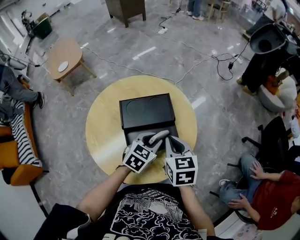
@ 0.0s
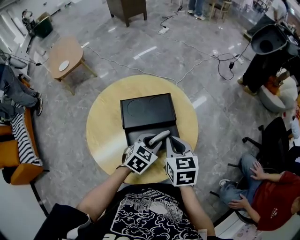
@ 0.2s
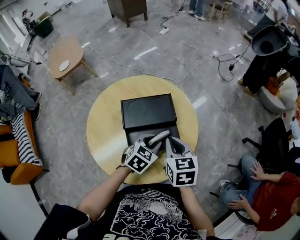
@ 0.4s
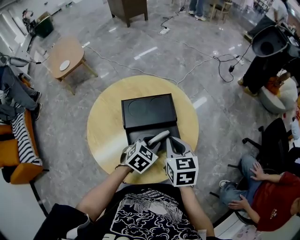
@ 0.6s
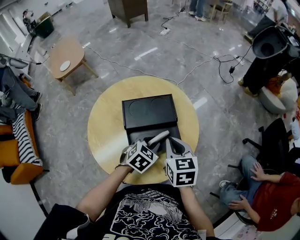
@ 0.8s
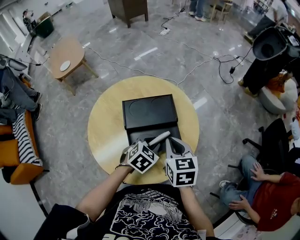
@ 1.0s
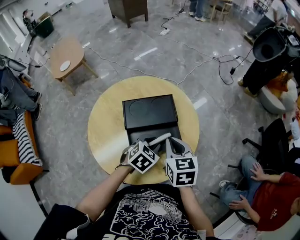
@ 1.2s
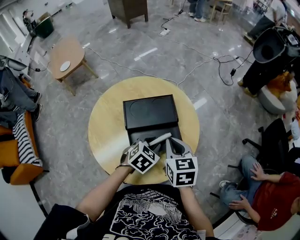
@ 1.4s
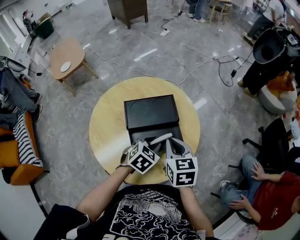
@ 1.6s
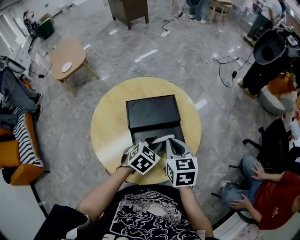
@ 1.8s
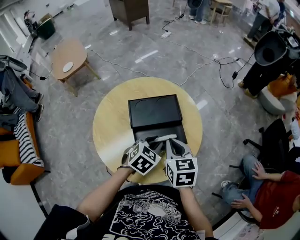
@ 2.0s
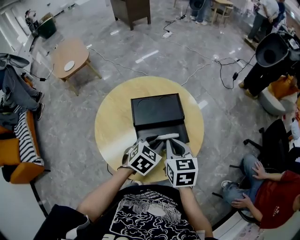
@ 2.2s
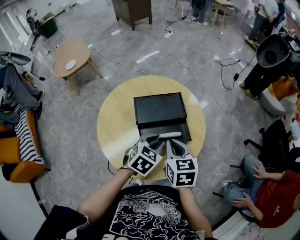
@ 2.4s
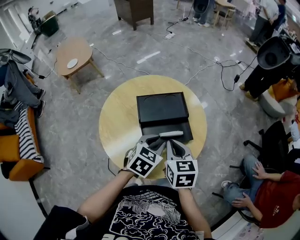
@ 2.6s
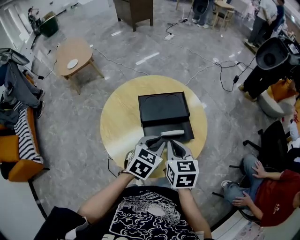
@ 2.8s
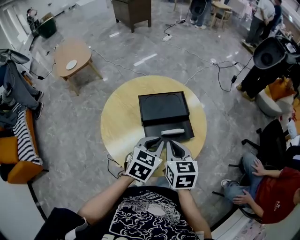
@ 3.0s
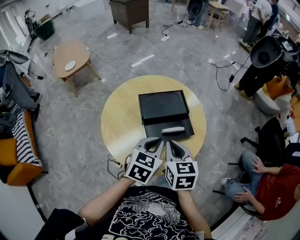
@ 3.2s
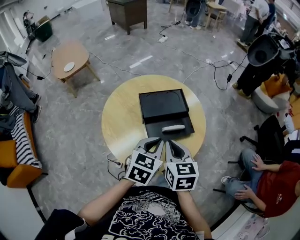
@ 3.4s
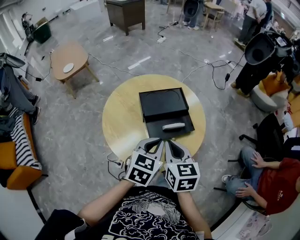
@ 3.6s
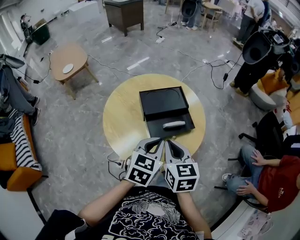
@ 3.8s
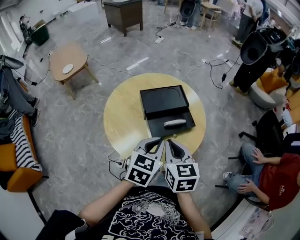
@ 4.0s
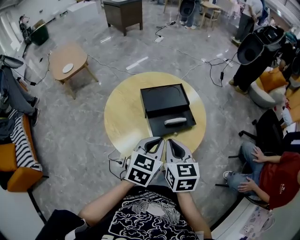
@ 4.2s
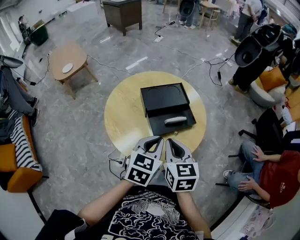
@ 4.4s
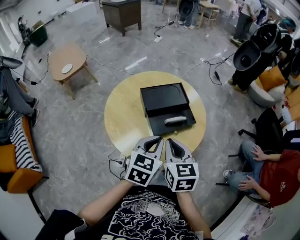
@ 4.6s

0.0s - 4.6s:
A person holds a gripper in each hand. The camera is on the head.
0.0s - 1.6s: The grippers stay close to where they were, moving slightly.
1.6s - 3.0s: The right gripper moves backward and to the left, approximately 10 cm. The left gripper goes roughly 15 cm upward, backward and to the left.
3.0s - 4.6s: The grippers both shift backward by approximately 10 cm.

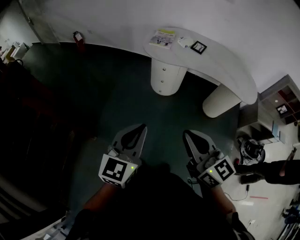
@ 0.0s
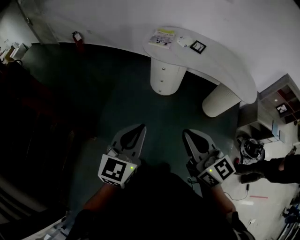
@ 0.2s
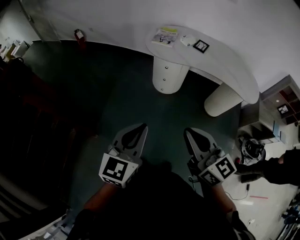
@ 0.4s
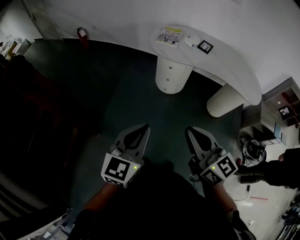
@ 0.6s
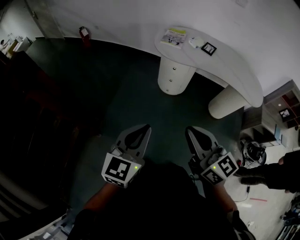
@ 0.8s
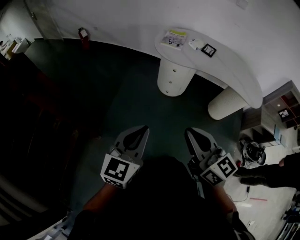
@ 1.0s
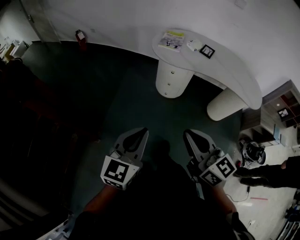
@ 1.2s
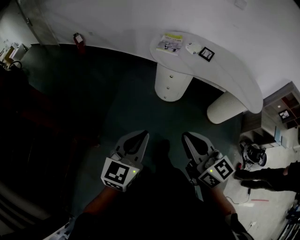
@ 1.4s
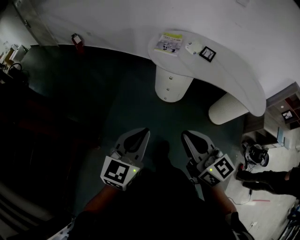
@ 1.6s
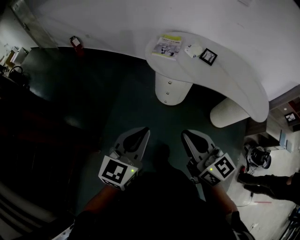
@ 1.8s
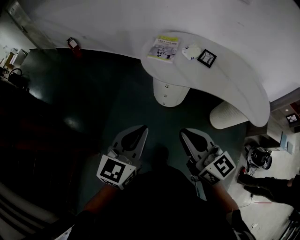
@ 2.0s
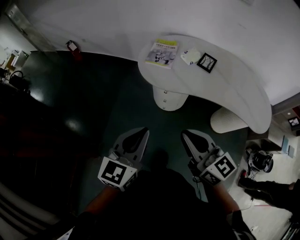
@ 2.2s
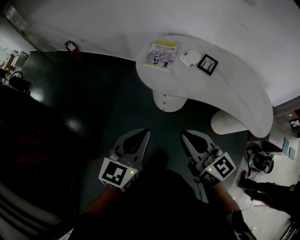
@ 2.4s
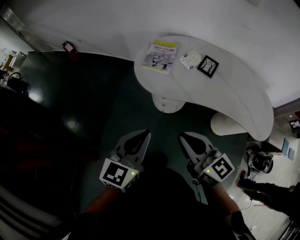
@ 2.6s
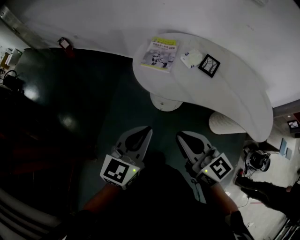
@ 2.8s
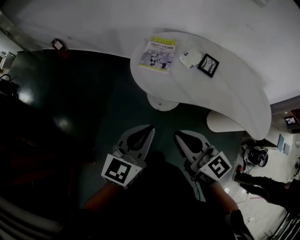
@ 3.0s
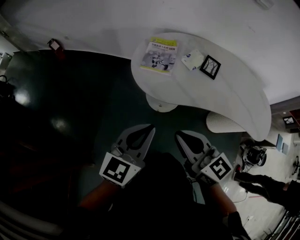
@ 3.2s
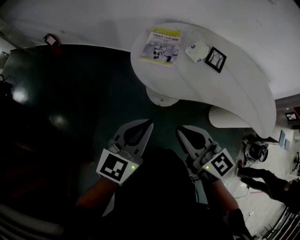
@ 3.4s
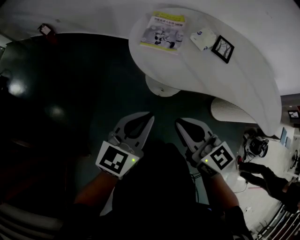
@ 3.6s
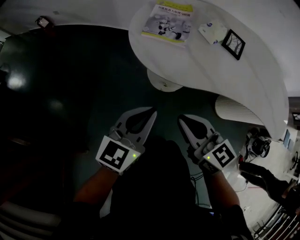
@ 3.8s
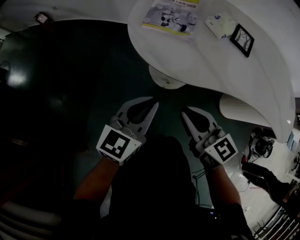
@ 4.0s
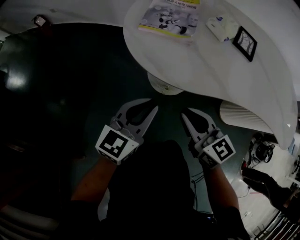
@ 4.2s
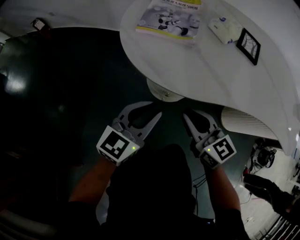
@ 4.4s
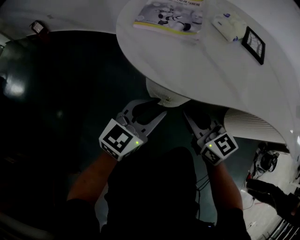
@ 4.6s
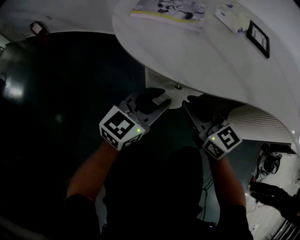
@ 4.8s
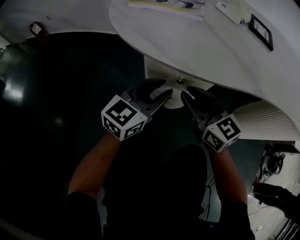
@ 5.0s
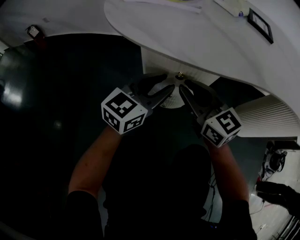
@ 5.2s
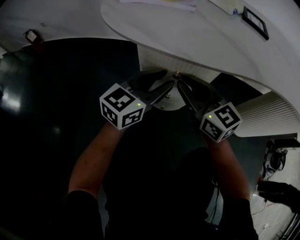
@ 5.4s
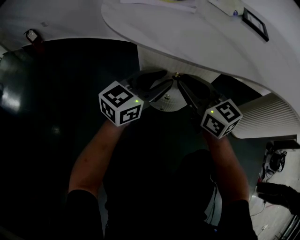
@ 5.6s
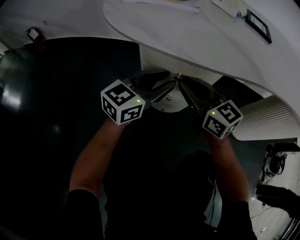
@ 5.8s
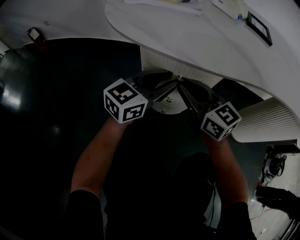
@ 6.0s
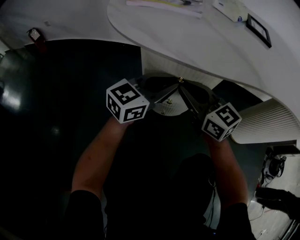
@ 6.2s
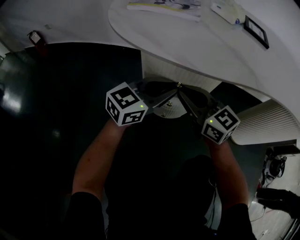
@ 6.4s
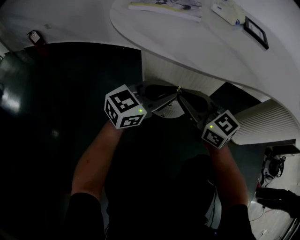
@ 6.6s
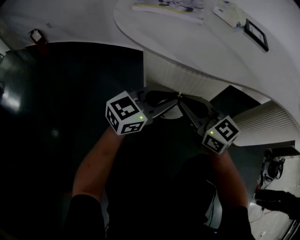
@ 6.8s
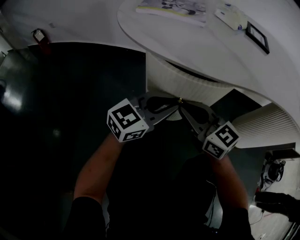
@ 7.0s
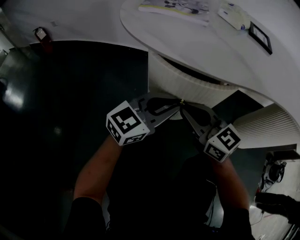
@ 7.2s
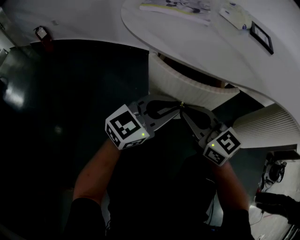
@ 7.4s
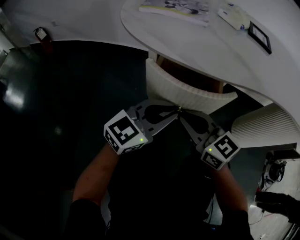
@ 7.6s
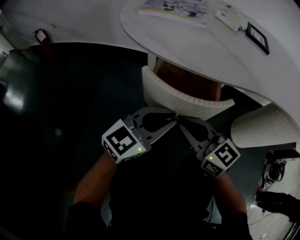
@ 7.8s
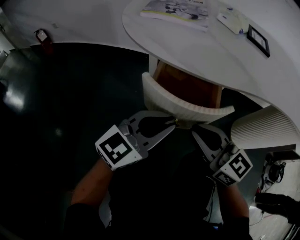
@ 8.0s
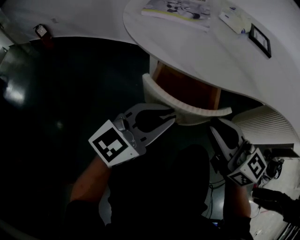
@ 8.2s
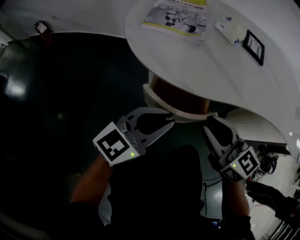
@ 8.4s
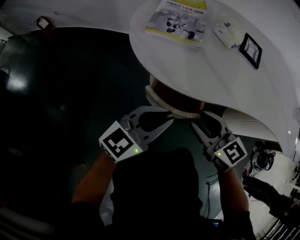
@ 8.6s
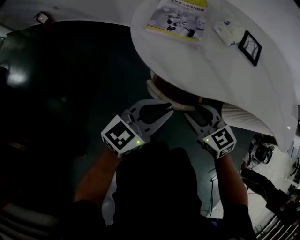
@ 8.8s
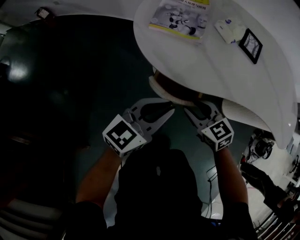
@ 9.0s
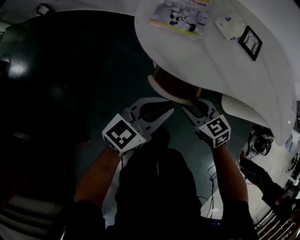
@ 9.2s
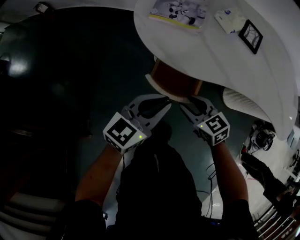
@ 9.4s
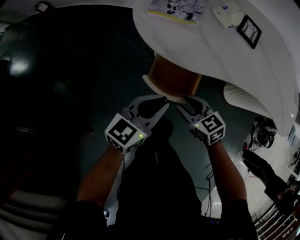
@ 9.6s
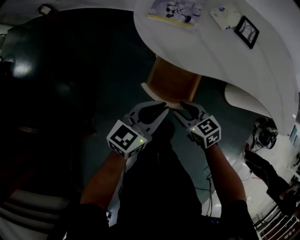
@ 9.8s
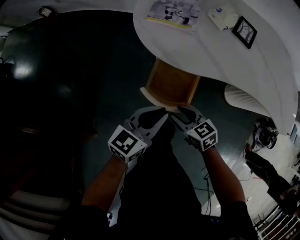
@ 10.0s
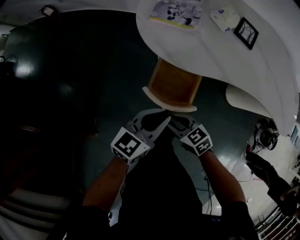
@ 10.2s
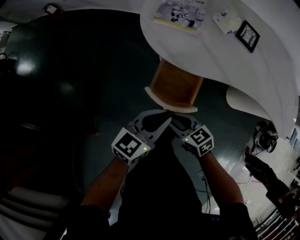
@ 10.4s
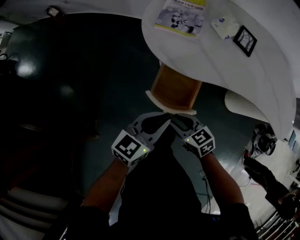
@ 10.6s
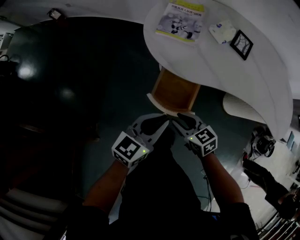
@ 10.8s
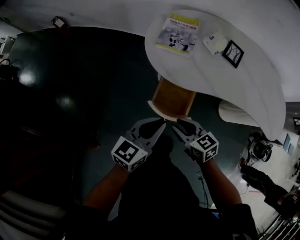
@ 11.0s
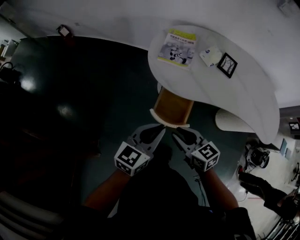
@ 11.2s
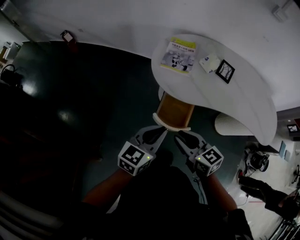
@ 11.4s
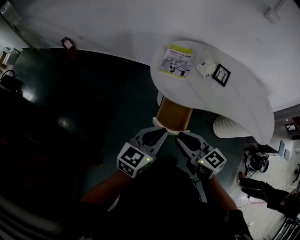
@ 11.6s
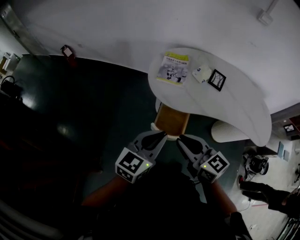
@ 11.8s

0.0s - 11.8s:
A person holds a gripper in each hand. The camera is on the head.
0.0s - 1.4s: The two grippers go some 10 cm forward and to the left.
1.4s - 3.0s: Both grippers move forward, approximately 35 cm.
3.0s - 4.4s: The grippers both shift downward and forward by some 35 cm.
4.4s - 6.0s: Both grippers travel together downward and forward, approximately 15 cm.
6.0s - 7.4s: The grippers both shift backward by about 10 cm.
7.4s - 8.8s: The left gripper goes approximately 20 cm upward; the right gripper heads upward, covering about 10 cm, changes its angle by about 20 degrees, and opens.
8.8s - 10.4s: The right gripper goes approximately 15 cm backward and to the left, and turns by about 20 degrees, while the left gripper goes approximately 10 cm backward.
10.4s - 11.8s: The left gripper shifts roughly 20 cm upward, while the right gripper is displaced upward by approximately 35 cm, and rotates roughly 30 degrees.

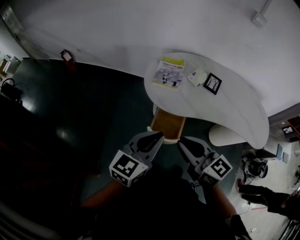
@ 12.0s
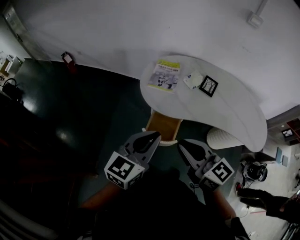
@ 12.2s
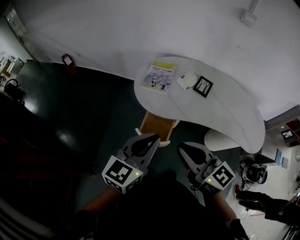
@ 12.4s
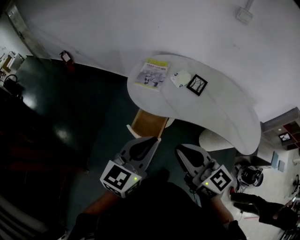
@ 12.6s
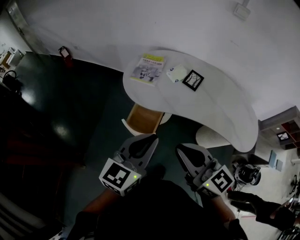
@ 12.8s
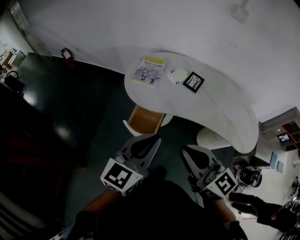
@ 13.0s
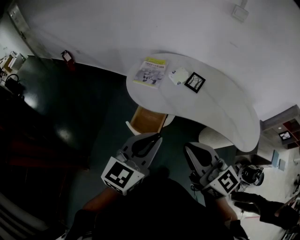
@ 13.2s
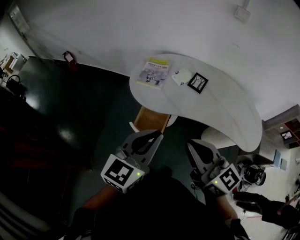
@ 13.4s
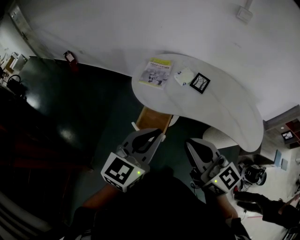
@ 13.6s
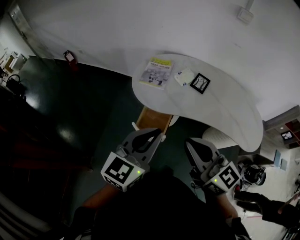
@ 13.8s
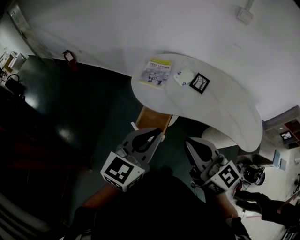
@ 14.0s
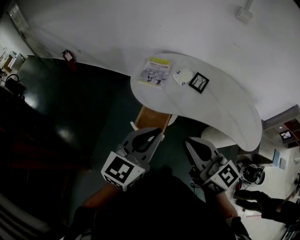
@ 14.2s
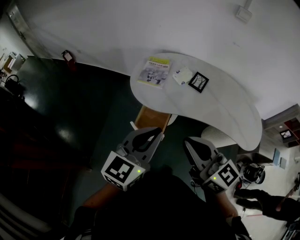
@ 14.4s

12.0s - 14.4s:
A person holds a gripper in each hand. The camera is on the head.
12.0s - 13.2s: The left gripper travels to the right, backward and upward by approximately 20 cm; the right gripper travels to the right, upward and backward by some 20 cm.
13.2s - 14.4s: There are only small adjustments of the grippers.

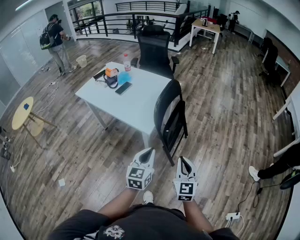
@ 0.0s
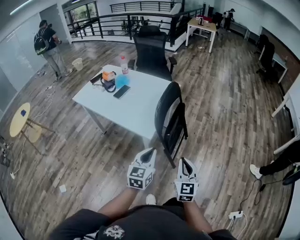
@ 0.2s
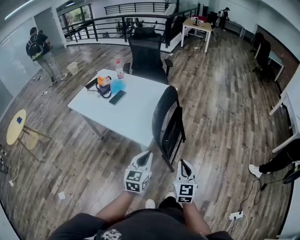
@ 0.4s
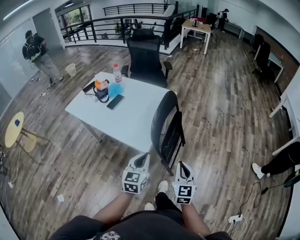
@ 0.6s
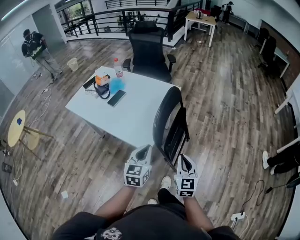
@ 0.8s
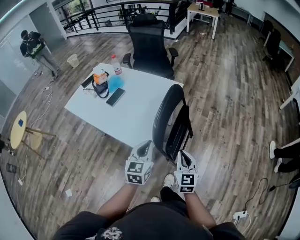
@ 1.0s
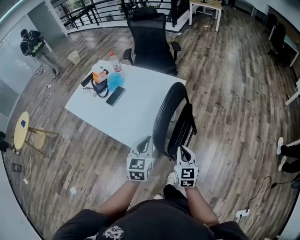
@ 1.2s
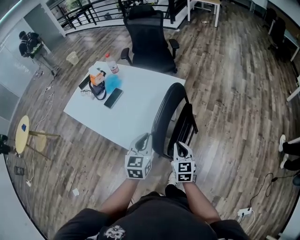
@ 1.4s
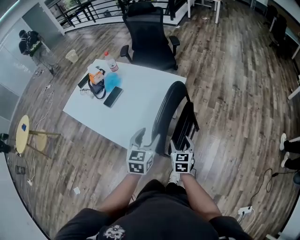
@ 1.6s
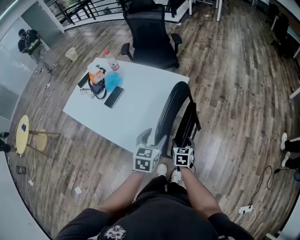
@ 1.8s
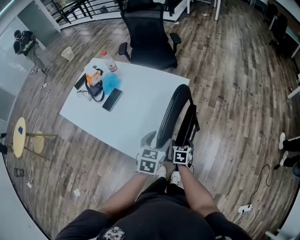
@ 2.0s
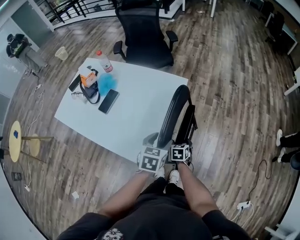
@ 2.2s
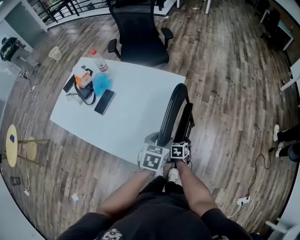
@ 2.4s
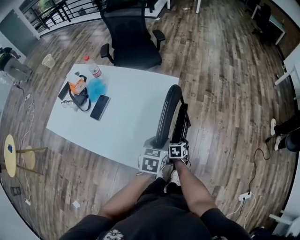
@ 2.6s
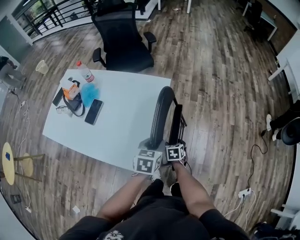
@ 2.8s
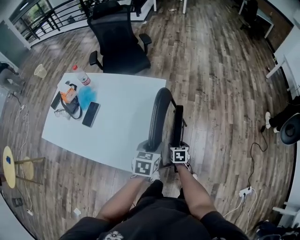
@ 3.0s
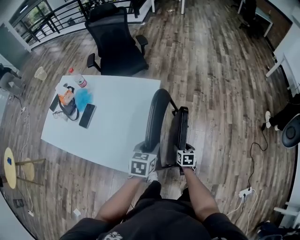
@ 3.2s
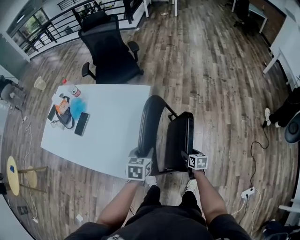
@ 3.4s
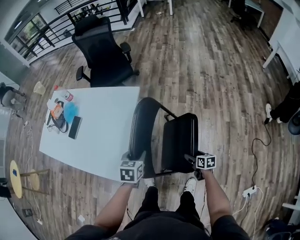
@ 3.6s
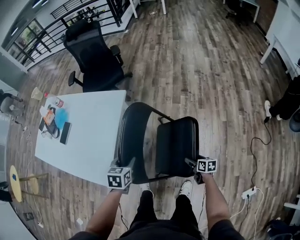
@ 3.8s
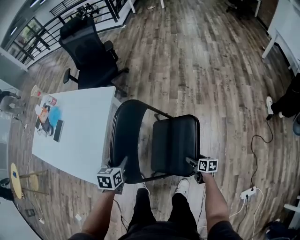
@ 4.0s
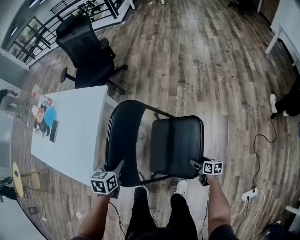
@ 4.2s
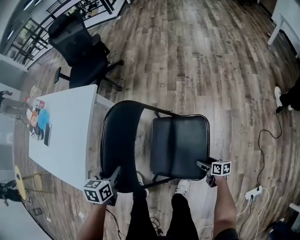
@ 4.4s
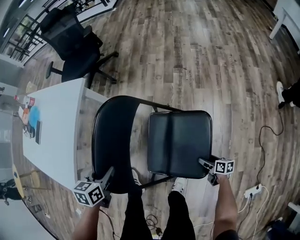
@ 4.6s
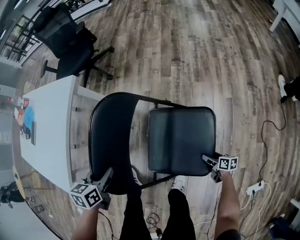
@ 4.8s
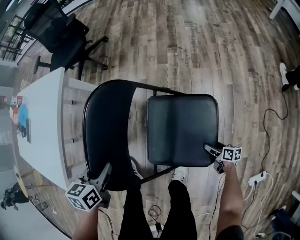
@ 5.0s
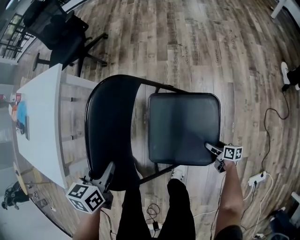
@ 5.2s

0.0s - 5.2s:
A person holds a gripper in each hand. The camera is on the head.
0.0s - 1.8s: The left gripper travels forward by some 35 cm, changes its angle by about 20 degrees, and opens up, while the right gripper heads forward and downward, covering about 50 cm, points its fingers approximately 30 degrees further downward, and opens.
1.8s - 3.4s: The left gripper goes about 10 cm to the right and downward, and closes; the right gripper heads to the right, covering about 20 cm, and changes its angle by roughly 20 degrees.
3.4s - 5.2s: The left gripper moves to the right and downward, some 30 cm, while the right gripper goes roughly 60 cm to the right and downward, and turns by about 30 degrees.
